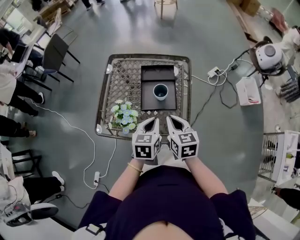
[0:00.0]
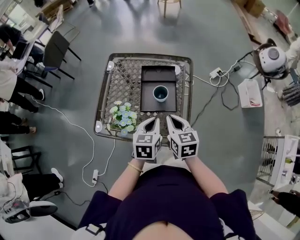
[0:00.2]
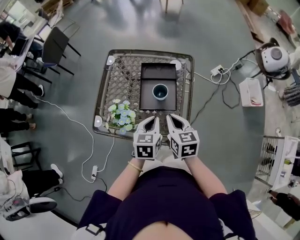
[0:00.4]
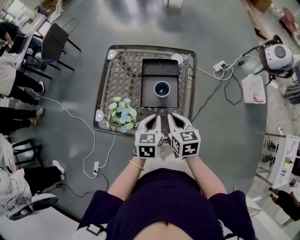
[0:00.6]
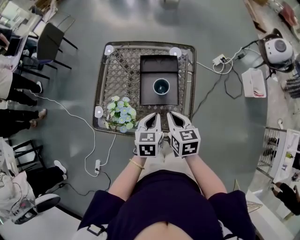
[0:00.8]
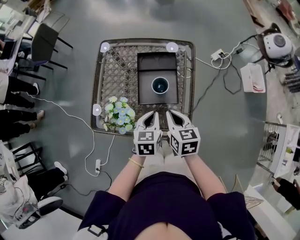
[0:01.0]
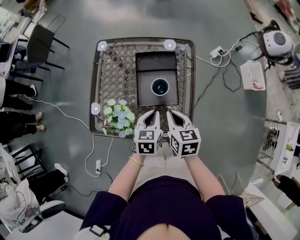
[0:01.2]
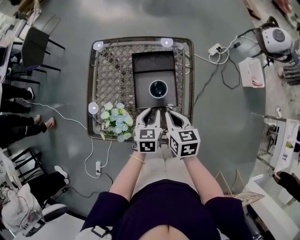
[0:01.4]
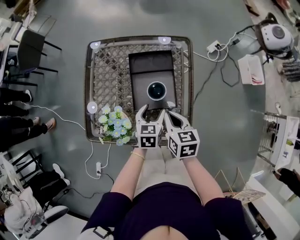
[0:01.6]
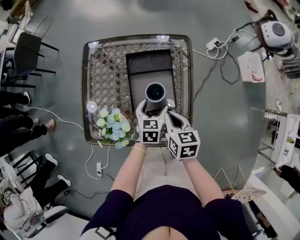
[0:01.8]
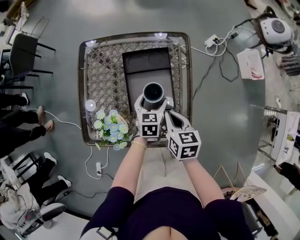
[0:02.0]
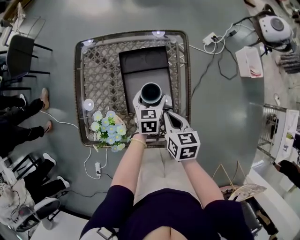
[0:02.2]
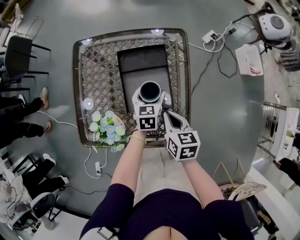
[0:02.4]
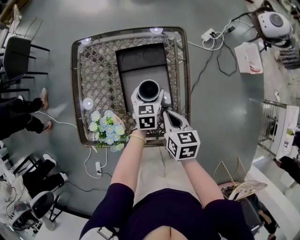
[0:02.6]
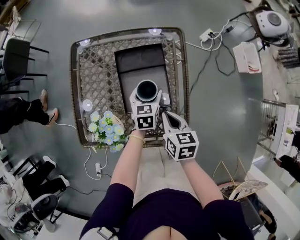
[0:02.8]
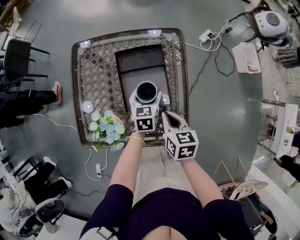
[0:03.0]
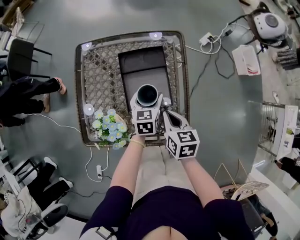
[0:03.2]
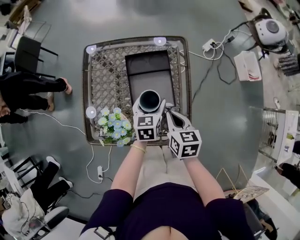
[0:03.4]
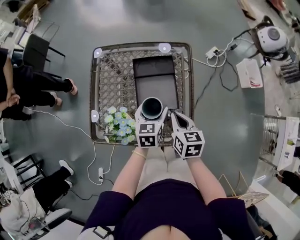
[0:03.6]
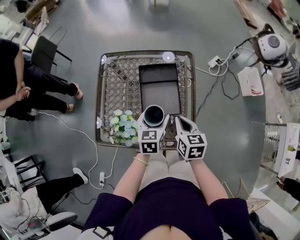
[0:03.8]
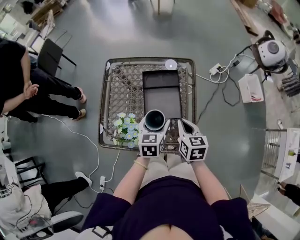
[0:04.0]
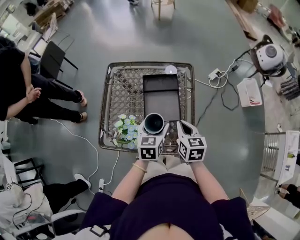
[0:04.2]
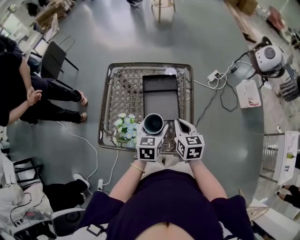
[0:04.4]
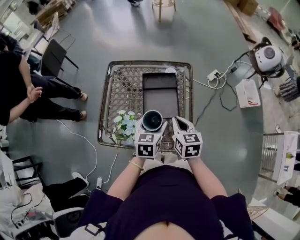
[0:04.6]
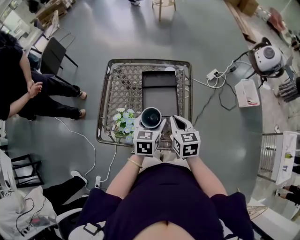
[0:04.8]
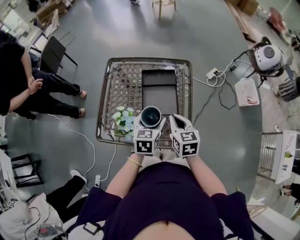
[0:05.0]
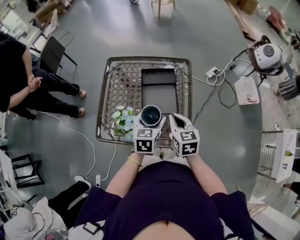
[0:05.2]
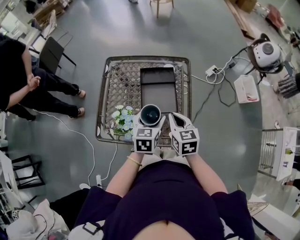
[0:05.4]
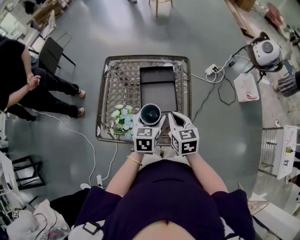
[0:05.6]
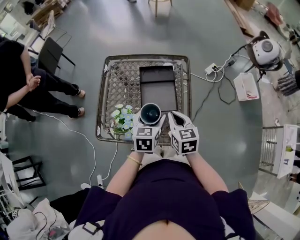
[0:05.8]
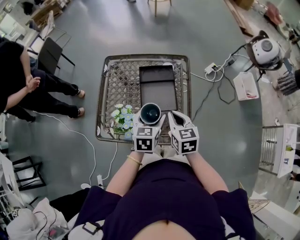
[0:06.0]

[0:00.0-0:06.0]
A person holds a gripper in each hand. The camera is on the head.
0:00.0 to 0:01.6: The right gripper moves downward and forward, approximately 10 cm, while the left gripper shifts roughly 15 cm downward and forward, and opens its fingers.
0:01.6 to 0:03.0: The left gripper heads forward, covering approximately 10 cm.
0:03.0 to 0:04.4: The left gripper moves upward and backward, about 20 cm, while the right gripper moves upward, about 10 cm.
0:04.4 to 0:06.0: The grippers make only small movements.

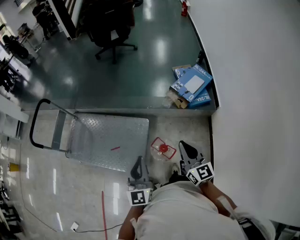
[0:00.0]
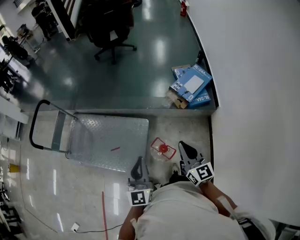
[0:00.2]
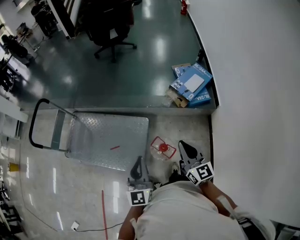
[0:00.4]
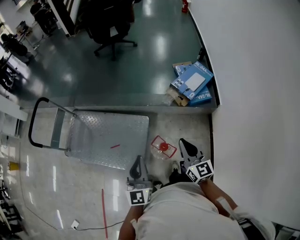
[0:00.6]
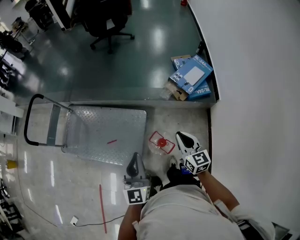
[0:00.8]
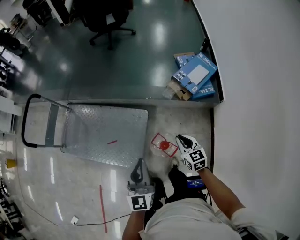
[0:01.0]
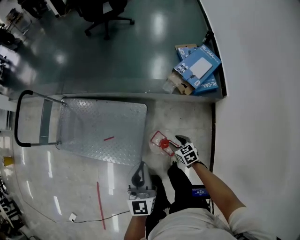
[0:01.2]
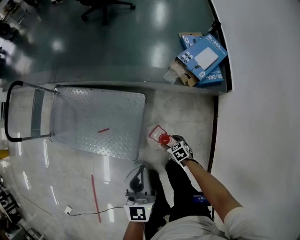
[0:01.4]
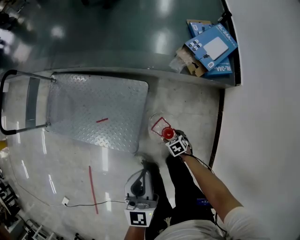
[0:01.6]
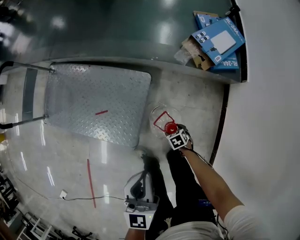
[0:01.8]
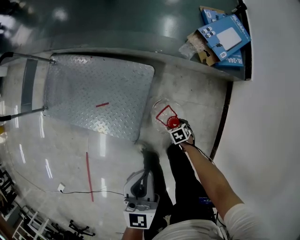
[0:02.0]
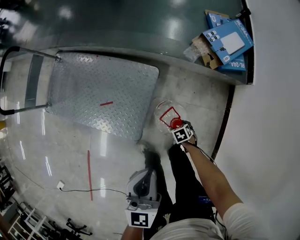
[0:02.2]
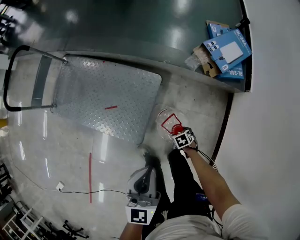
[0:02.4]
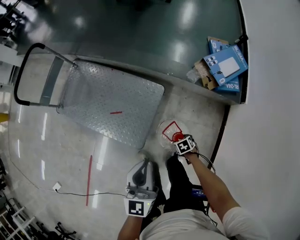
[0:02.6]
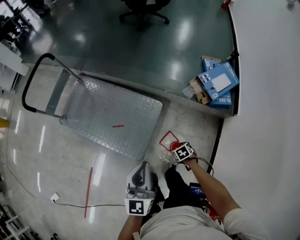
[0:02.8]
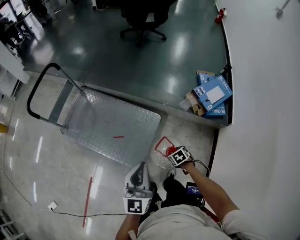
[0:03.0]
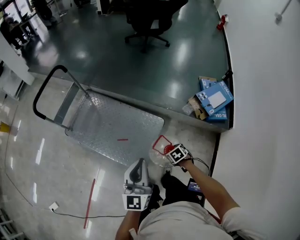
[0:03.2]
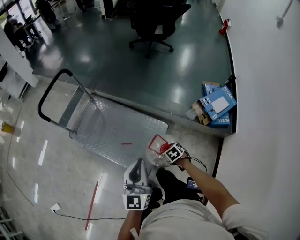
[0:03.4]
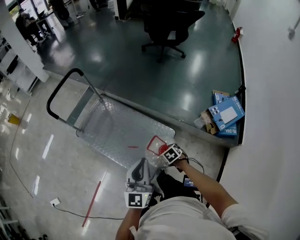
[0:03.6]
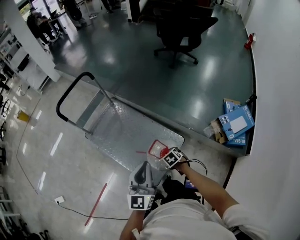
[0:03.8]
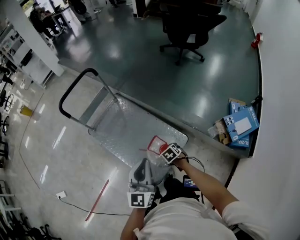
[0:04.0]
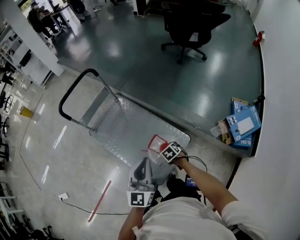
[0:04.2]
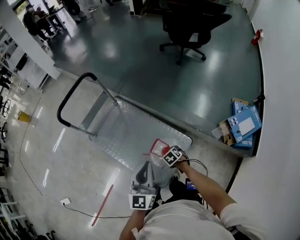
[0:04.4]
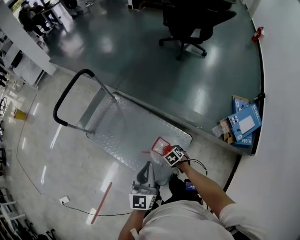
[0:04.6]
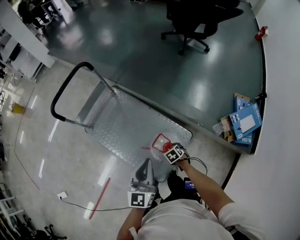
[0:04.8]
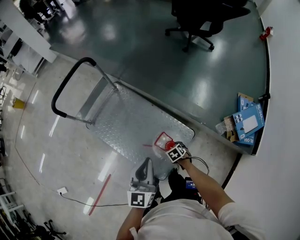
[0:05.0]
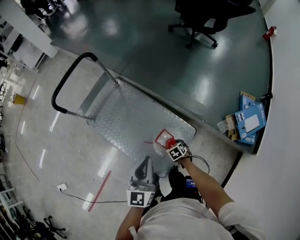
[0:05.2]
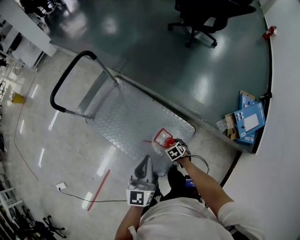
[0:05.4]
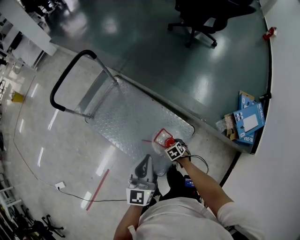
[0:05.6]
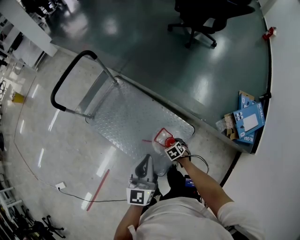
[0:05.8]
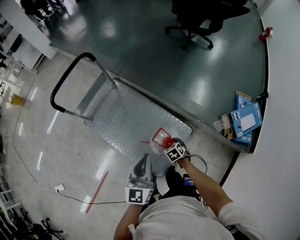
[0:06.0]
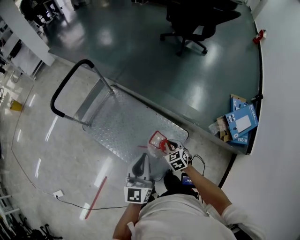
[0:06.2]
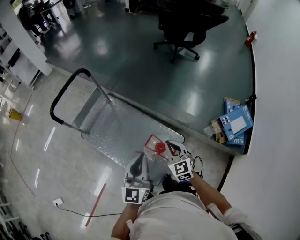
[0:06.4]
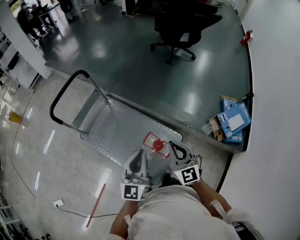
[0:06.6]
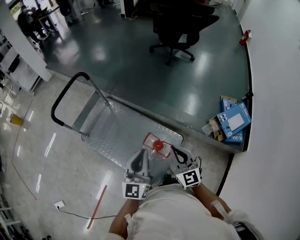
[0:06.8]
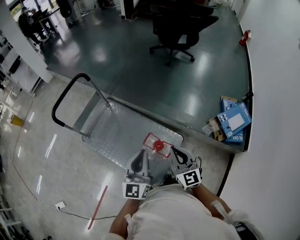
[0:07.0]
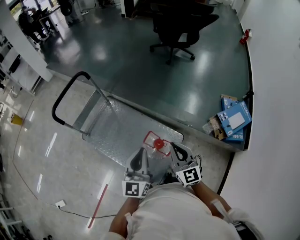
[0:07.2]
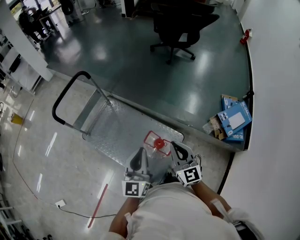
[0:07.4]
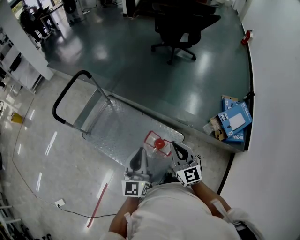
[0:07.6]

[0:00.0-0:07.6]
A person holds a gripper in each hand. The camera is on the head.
0:00.0 to 0:01.6: The left gripper heads downward, covering approximately 15 cm, while the right gripper is displaced downward by roughly 50 cm, points its fingers about 70 degrees further downward, and opens its fingers.
0:01.6 to 0:03.0: The left gripper moves some 20 cm. The right gripper shifts some 20 cm upward.
0:03.0 to 0:04.6: The right gripper reaches some 5 cm upward, then returns. The left gripper ends up some 25 cm from where it was.
0:04.6 to 0:06.0: The grippers make only small movements.
0:06.0 to 0:07.6: The right gripper heads upward, covering roughly 35 cm, points its fingers about 60 degrees further upward, and closes up. Meanwhile the left gripper is displaced upward by about 5 cm.

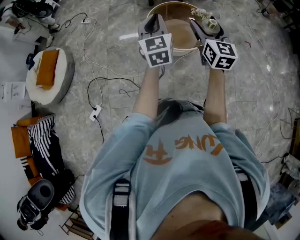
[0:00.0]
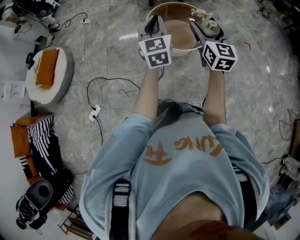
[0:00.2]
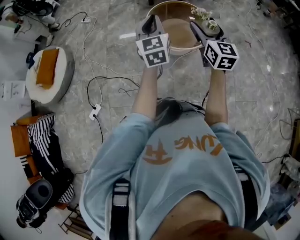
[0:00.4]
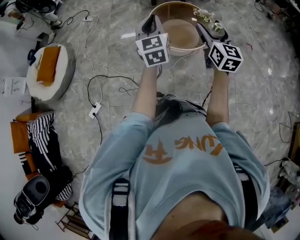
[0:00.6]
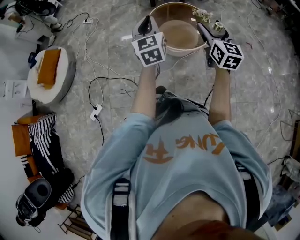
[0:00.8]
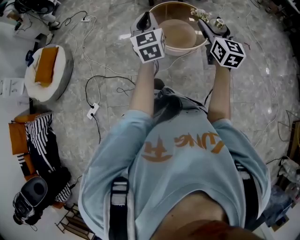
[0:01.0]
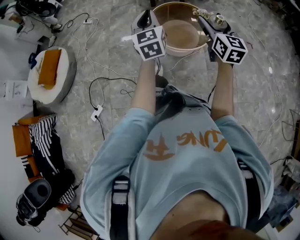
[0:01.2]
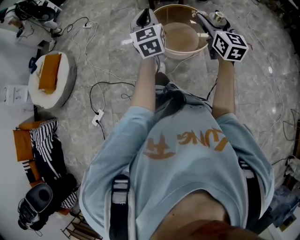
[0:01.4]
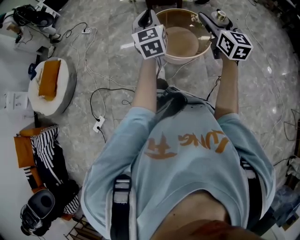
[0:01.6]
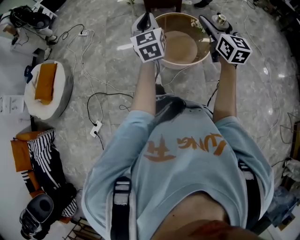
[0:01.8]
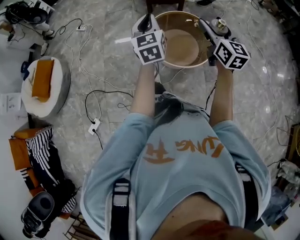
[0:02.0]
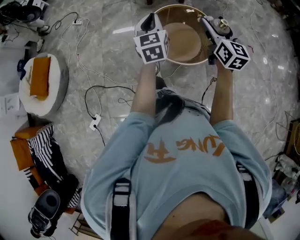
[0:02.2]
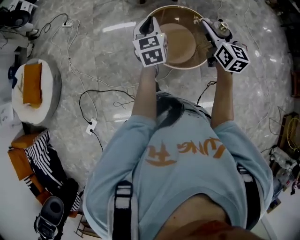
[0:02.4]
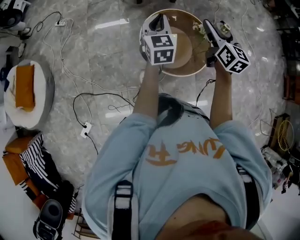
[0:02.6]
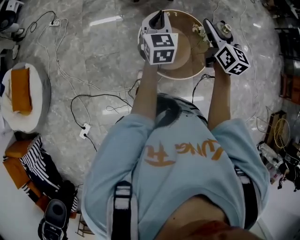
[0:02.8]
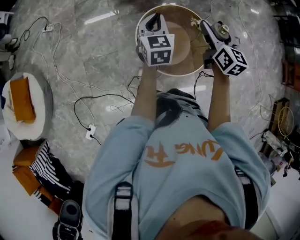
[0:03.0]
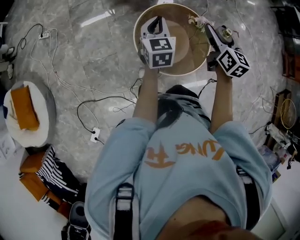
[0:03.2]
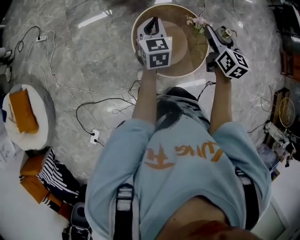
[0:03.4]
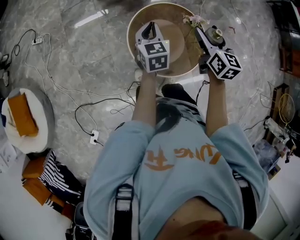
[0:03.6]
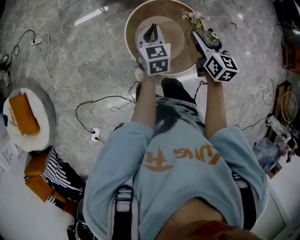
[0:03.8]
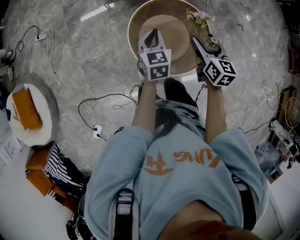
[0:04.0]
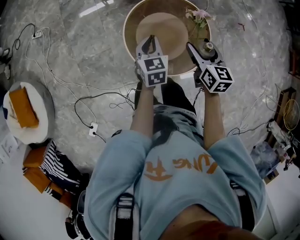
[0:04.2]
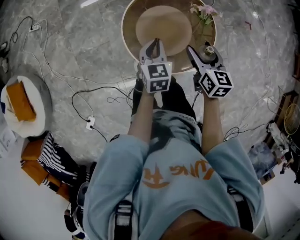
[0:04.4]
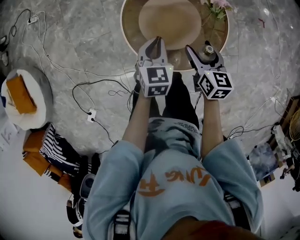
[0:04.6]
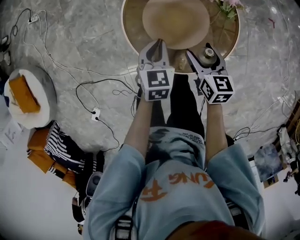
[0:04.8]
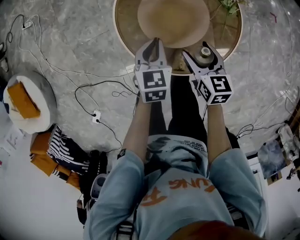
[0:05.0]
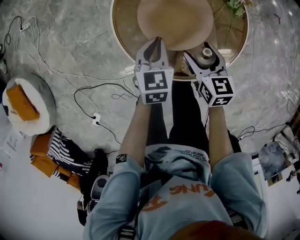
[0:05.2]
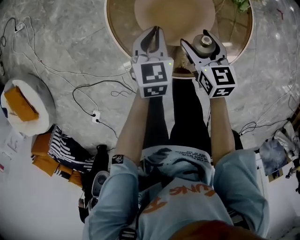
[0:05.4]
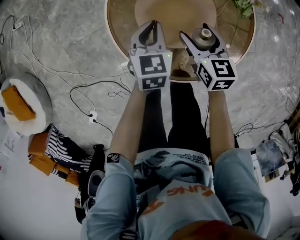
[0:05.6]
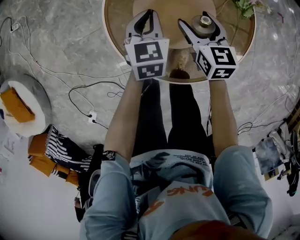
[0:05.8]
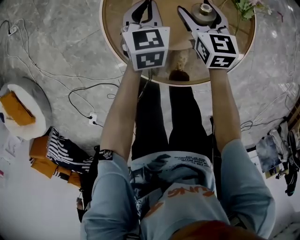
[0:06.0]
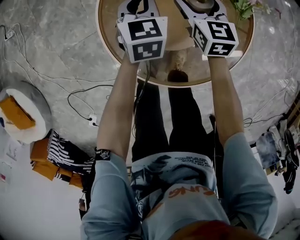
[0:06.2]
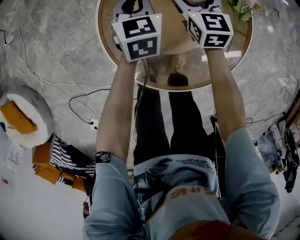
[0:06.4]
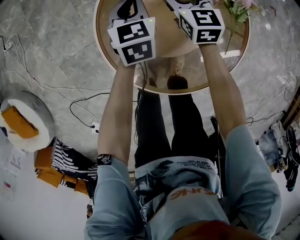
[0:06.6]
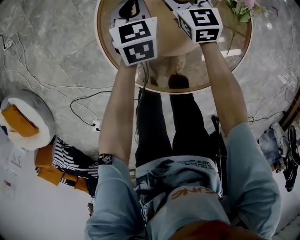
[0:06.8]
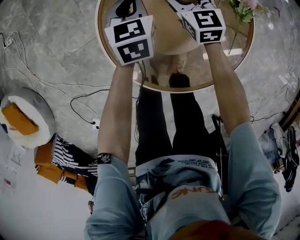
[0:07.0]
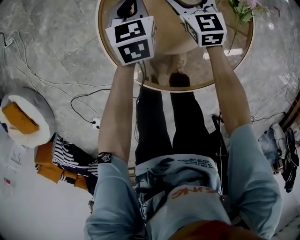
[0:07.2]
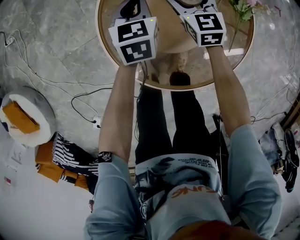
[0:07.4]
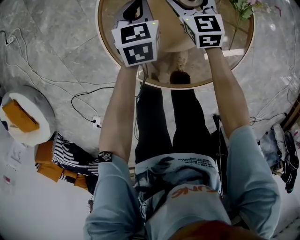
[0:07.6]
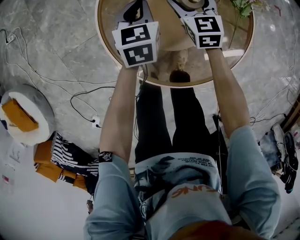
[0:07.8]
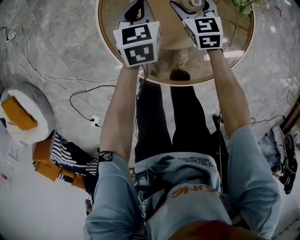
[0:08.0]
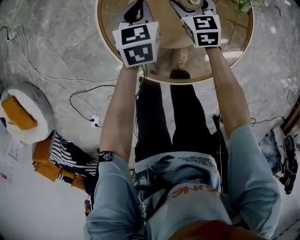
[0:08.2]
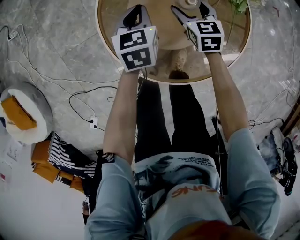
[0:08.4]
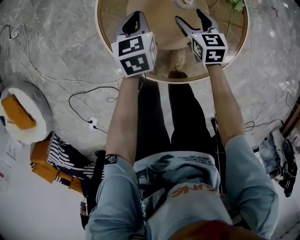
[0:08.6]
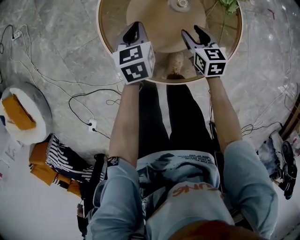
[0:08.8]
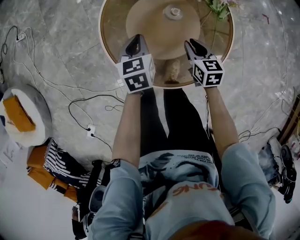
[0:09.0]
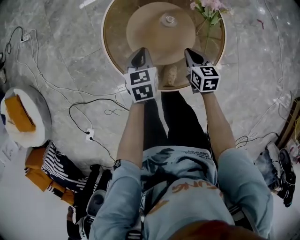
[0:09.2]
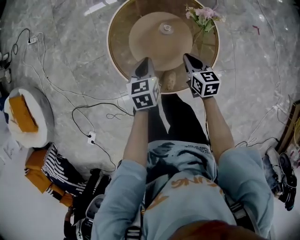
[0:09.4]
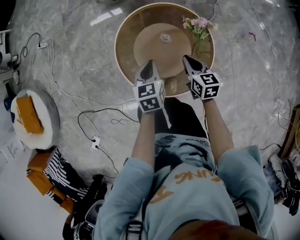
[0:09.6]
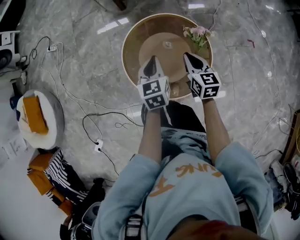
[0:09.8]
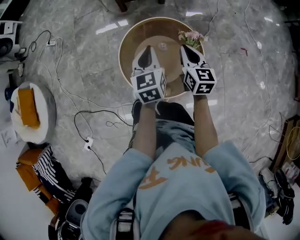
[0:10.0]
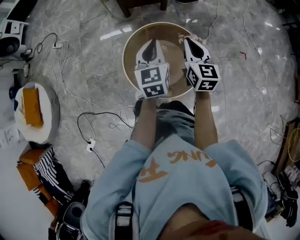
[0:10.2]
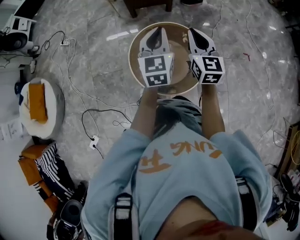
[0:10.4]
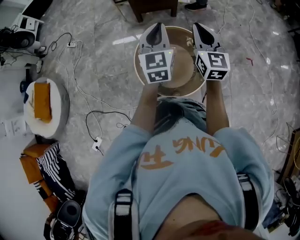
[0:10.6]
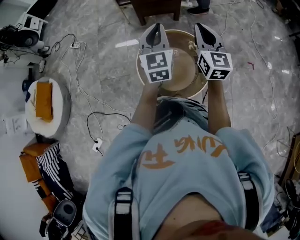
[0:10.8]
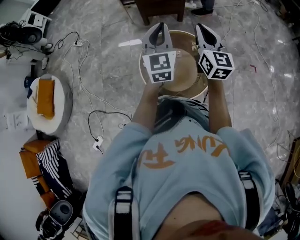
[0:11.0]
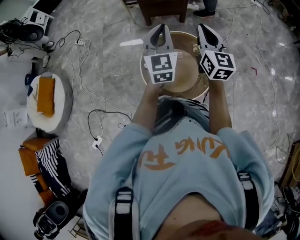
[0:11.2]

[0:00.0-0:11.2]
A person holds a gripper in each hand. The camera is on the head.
0:00.0 to 0:01.6: The right gripper shifts by some 5 cm. Meanwhile the left gripper shifts about 5 cm forward.
0:01.6 to 0:03.2: Both grippers move forward and downward, some 40 cm. The left gripper changes its angle by some 30 degrees. The right gripper rotates some 30 degrees.
0:03.2 to 0:04.8: Both grippers move downward, some 30 cm. The left gripper swivels some 20 degrees, while the right gripper turns by about 30 degrees.
0:04.8 to 0:06.4: The grippers both shift forward and downward by roughly 25 cm.
0:06.4 to 0:08.0: The left gripper shifts roughly 5 cm backward, while the right gripper shifts roughly 10 cm backward and downward.
0:08.0 to 0:09.6: Both grippers travel together upward and backward, some 25 cm. The right gripper closes its fingers.
0:09.6 to 0:11.2: Both grippers travel together upward, some 40 cm. The right gripper angles its fingers upward, by approximately 40 degrees, while the left gripper tilts its fingers some 40 degrees upward.
